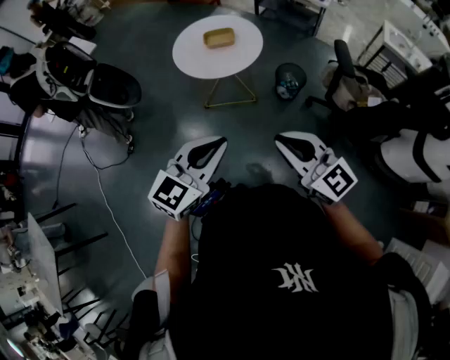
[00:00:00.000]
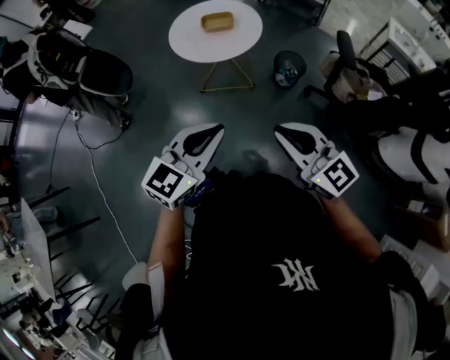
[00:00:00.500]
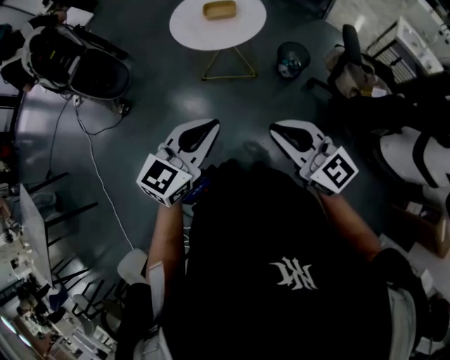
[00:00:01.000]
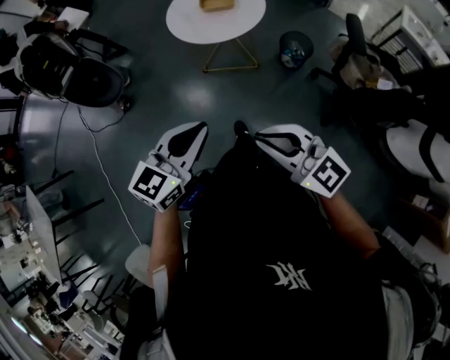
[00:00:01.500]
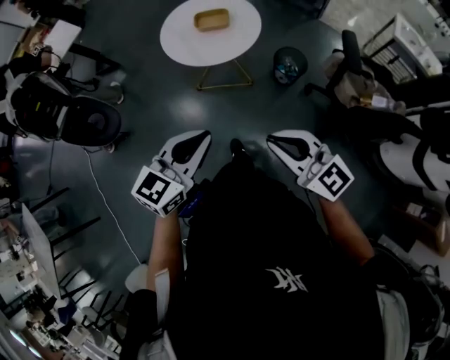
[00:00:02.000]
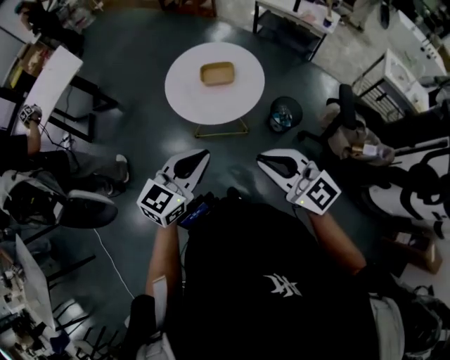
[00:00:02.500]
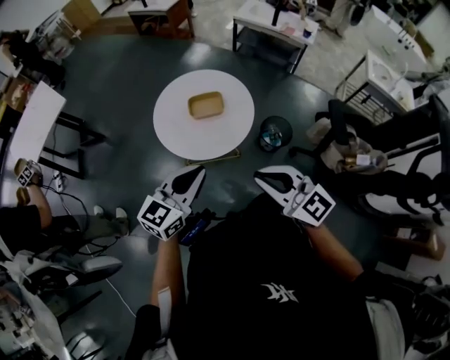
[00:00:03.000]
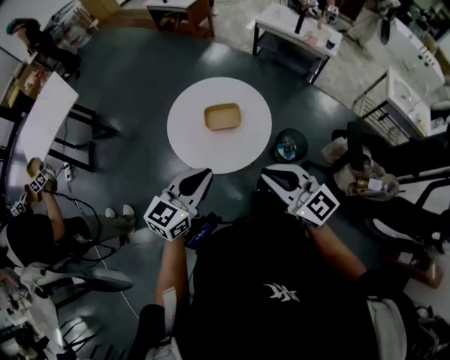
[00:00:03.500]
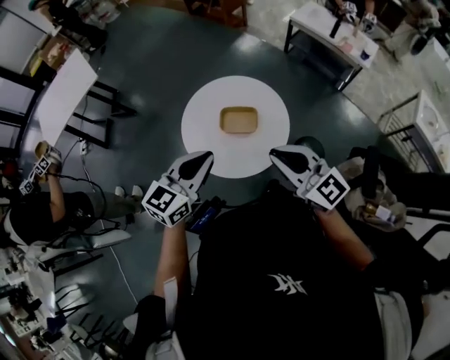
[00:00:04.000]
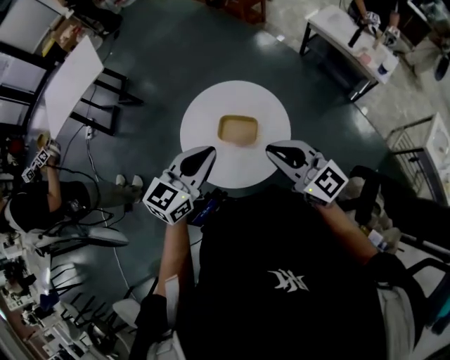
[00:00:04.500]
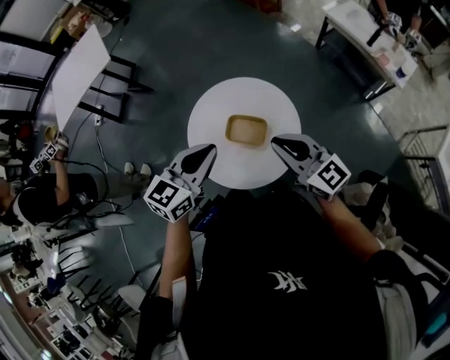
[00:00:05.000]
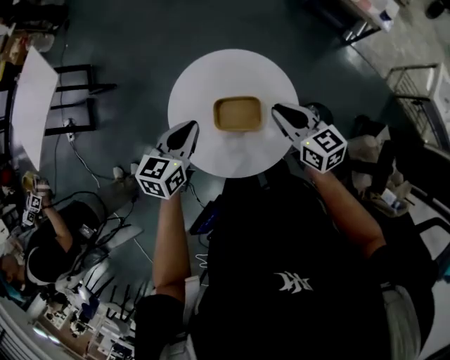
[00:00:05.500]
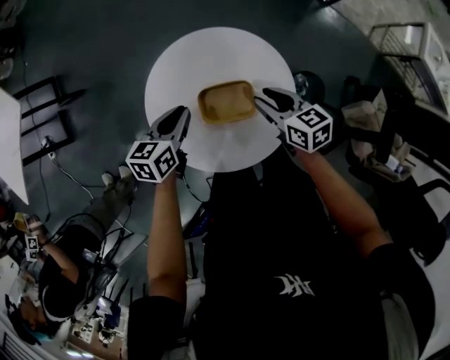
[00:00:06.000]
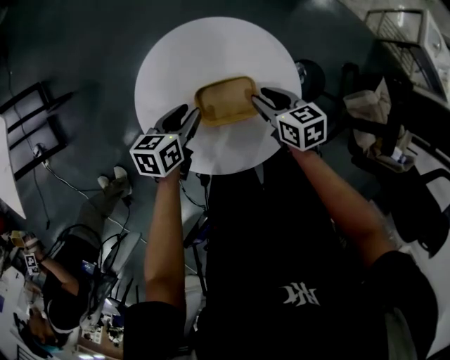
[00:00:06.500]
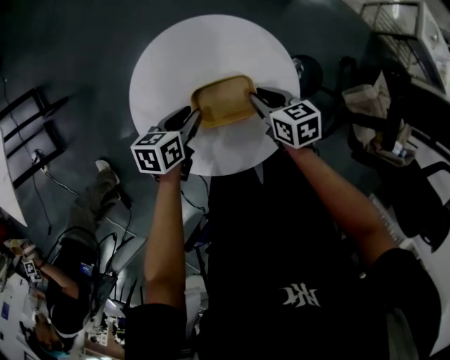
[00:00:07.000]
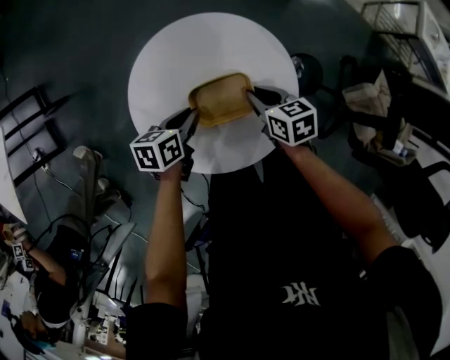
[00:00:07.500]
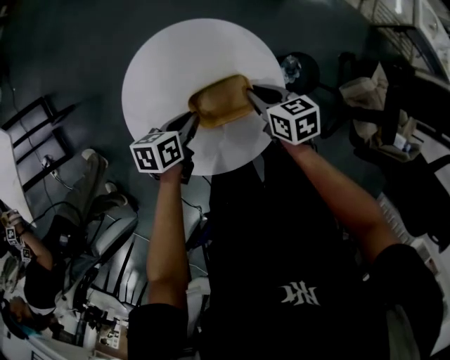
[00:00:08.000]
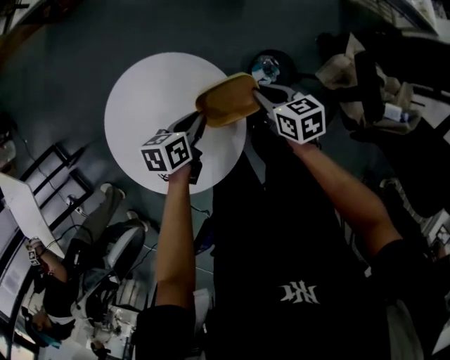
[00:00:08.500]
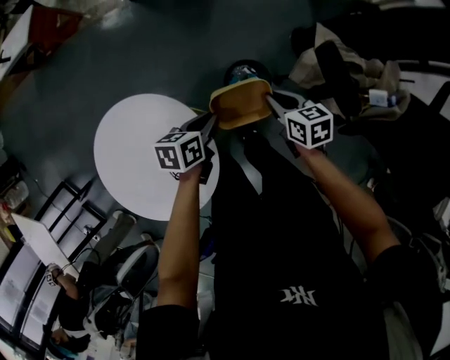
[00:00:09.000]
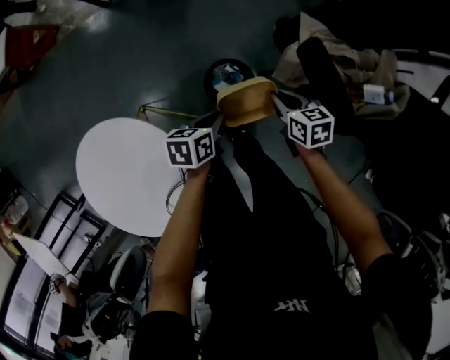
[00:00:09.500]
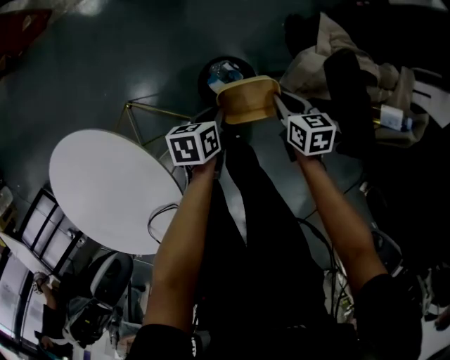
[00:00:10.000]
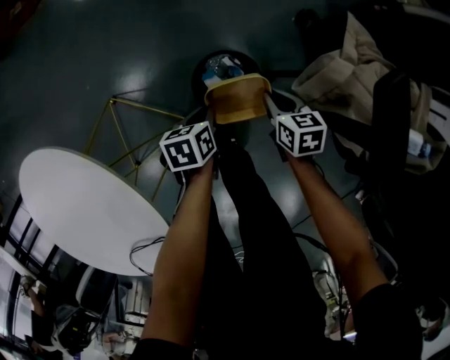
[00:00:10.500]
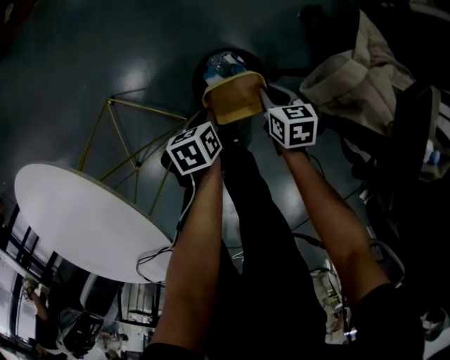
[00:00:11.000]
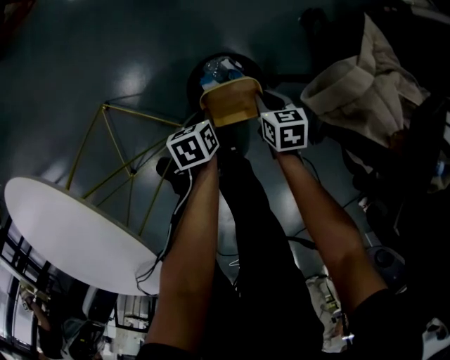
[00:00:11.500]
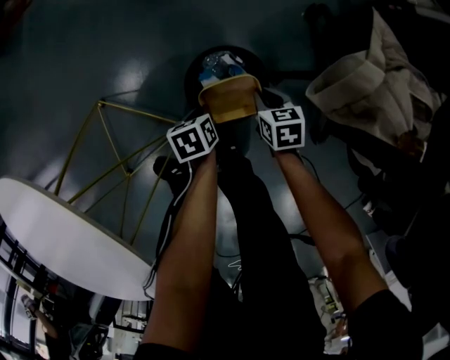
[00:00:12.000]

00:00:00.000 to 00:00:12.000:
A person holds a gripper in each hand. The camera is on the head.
00:00:00.000 to 00:00:02.000: Both grippers move forward, about 10 cm.
00:00:02.000 to 00:00:04.000: The two grippers travel together, forward, about 40 cm.
00:00:04.000 to 00:00:06.000: The grippers both shift downward and forward by roughly 35 cm. The right gripper tilts its fingers approximately 30 degrees downward, and opens up; the left gripper swivels approximately 40 degrees.
00:00:06.000 to 00:00:08.000: The right gripper shifts about 5 cm downward. The left gripper is displaced downward and to the right by about 10 cm, turns by about 20 degrees, and opens and closes again.
00:00:08.000 to 00:00:10.000: The pair of grippers is taken about 50 cm. The left gripper rotates approximately 20 degrees. Meanwhile the right gripper turns by about 30 degrees.
00:00:10.000 to 00:00:12.000: Both grippers travel together downward, about 25 cm. The left gripper rotates approximately 20 degrees.

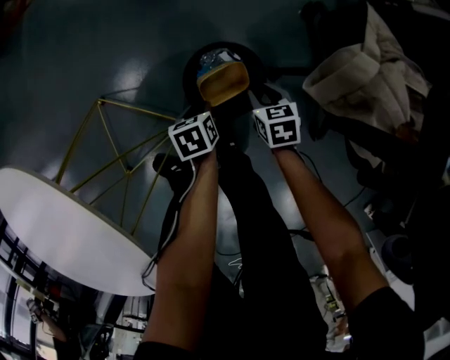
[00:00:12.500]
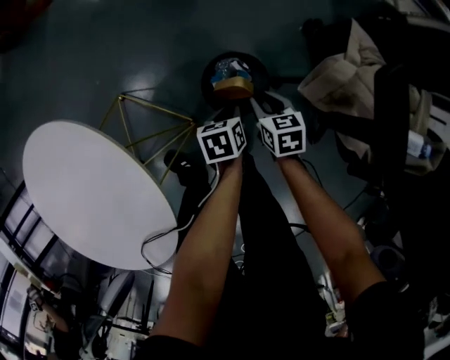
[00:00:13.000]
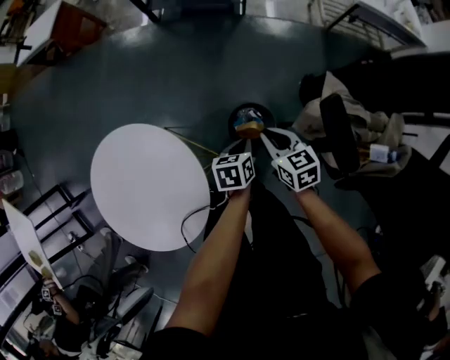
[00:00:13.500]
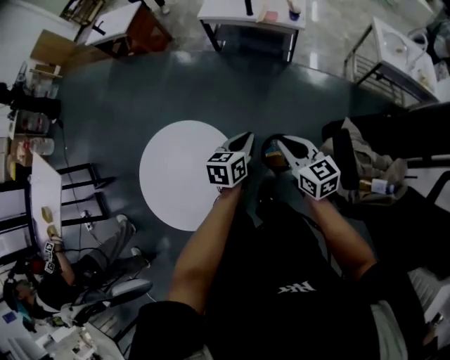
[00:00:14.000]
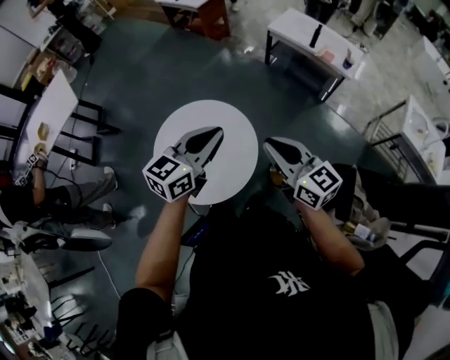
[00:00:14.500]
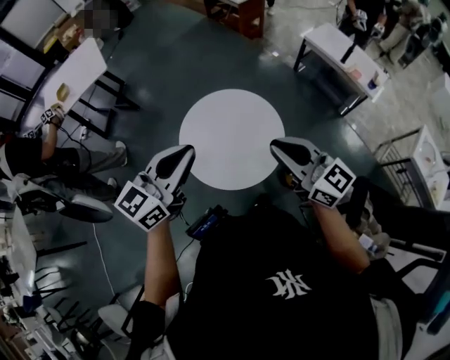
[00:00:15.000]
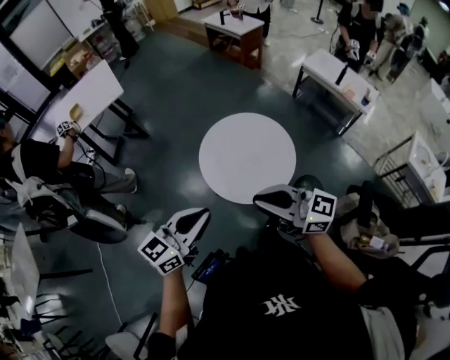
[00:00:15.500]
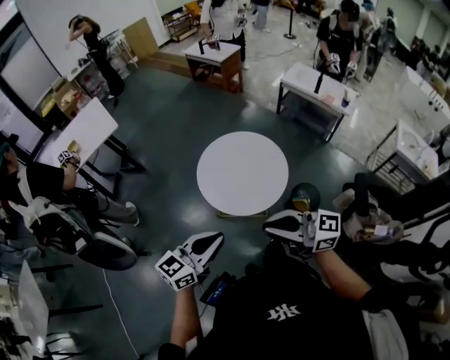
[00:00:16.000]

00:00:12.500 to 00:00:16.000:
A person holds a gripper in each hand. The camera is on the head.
00:00:12.500 to 00:00:14.500: The grippers both shift upward by some 80 cm. The right gripper tips its fingers upward by approximately 50 degrees; the left gripper tilts its fingers approximately 60 degrees upward, and closes up.
00:00:14.500 to 00:00:16.000: Both grippers move to the left and backward, roughly 40 cm. The right gripper swivels roughly 40 degrees.

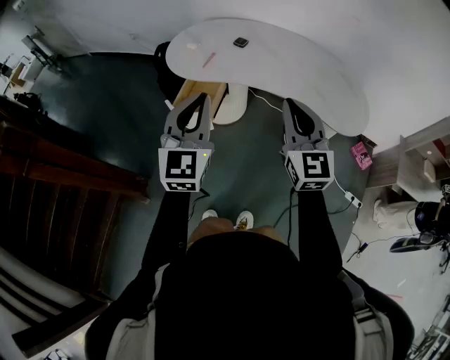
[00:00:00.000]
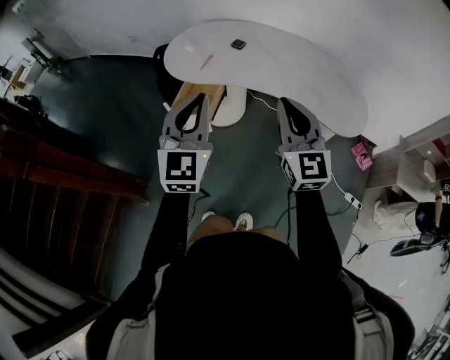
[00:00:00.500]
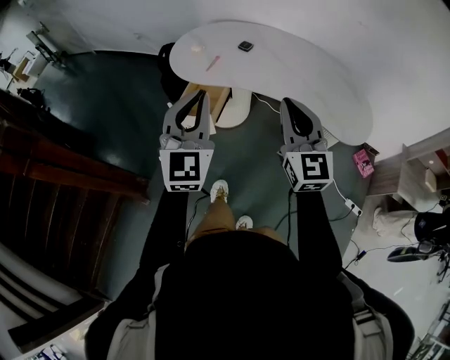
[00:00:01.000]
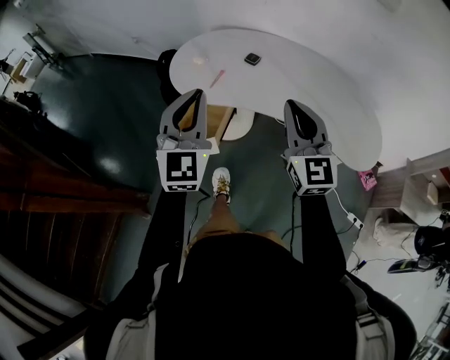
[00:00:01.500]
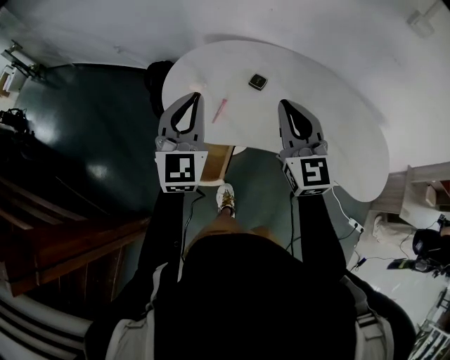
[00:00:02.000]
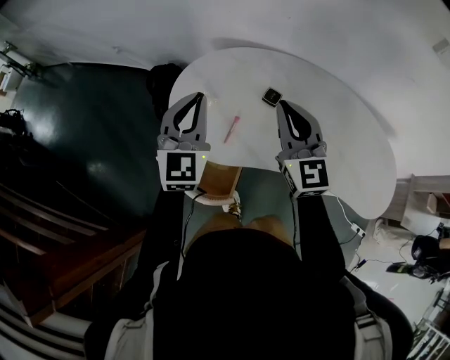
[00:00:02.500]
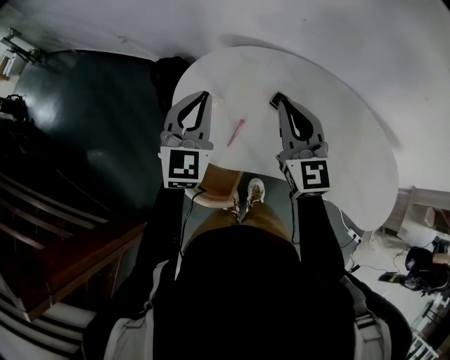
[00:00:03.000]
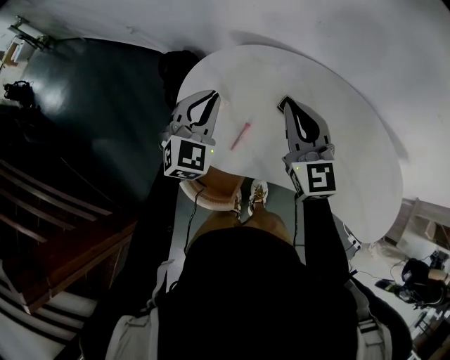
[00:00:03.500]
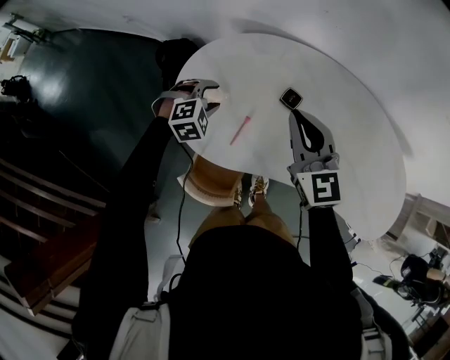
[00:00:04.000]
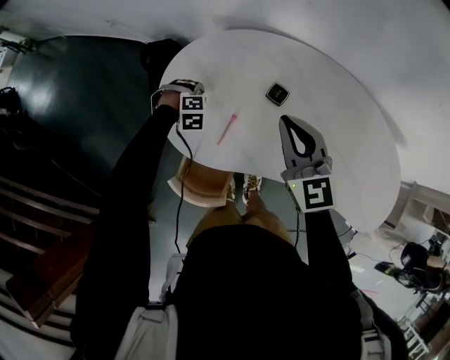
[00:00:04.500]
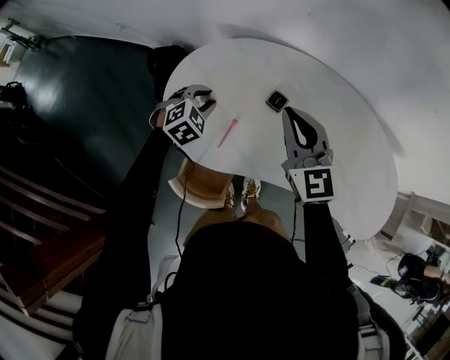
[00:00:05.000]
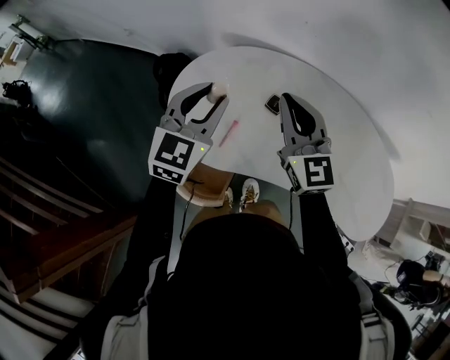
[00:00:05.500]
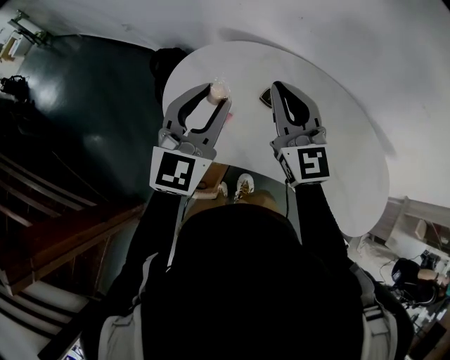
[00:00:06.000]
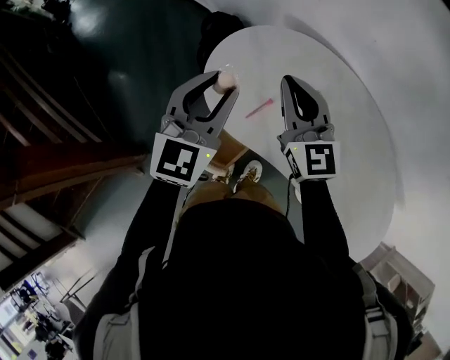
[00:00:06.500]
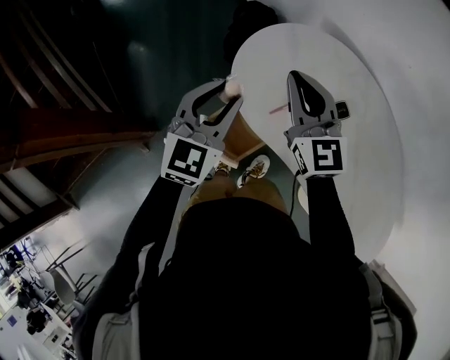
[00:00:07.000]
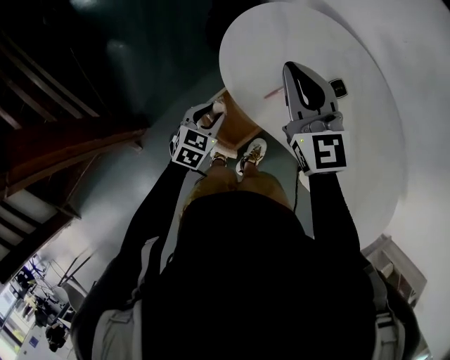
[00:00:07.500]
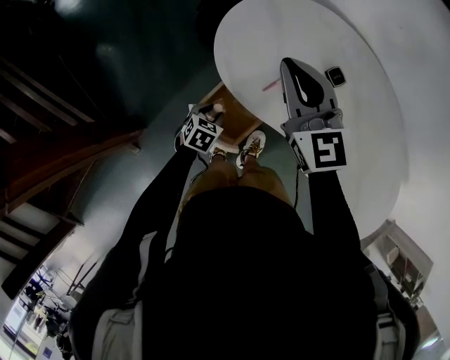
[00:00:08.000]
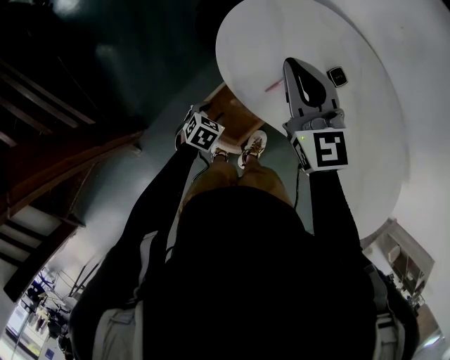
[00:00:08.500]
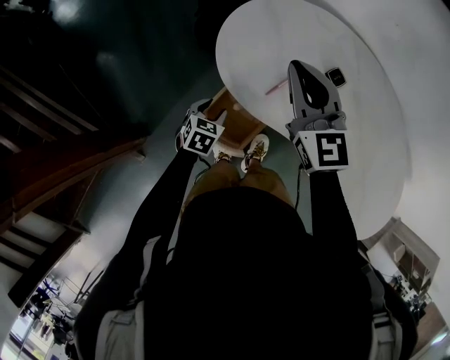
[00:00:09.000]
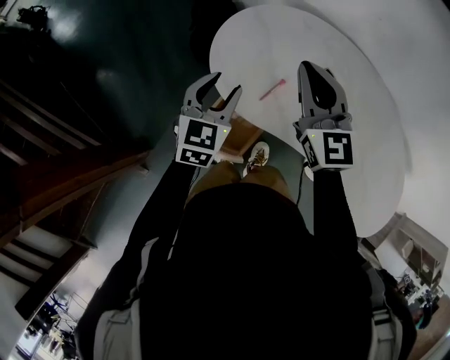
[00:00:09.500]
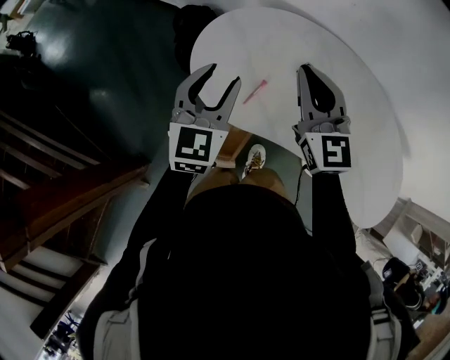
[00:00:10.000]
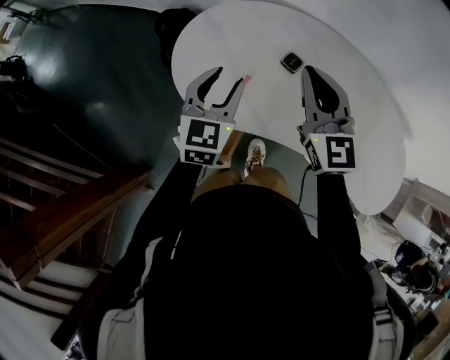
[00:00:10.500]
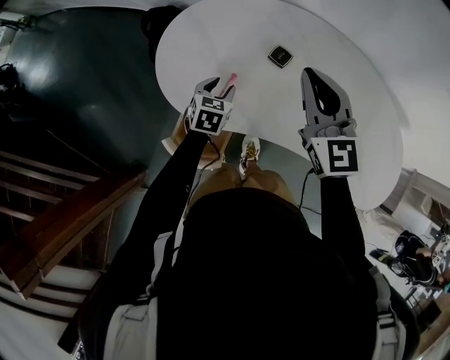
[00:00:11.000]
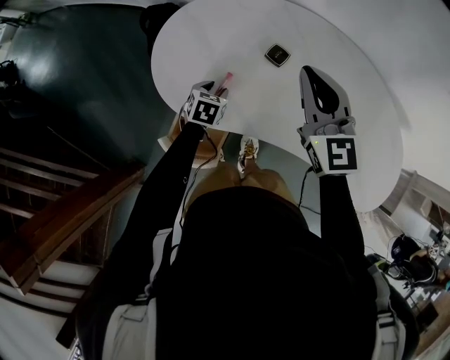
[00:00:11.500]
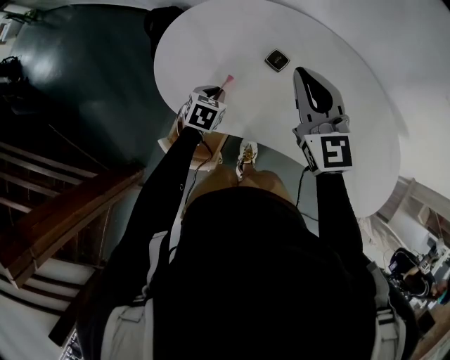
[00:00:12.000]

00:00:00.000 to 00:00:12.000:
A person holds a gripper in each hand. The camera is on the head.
00:00:00.000 to 00:00:02.000: Both grippers move forward, some 30 cm.
00:00:02.000 to 00:00:04.000: The left gripper goes roughly 30 cm downward and forward, tips its fingers downward by roughly 60 degrees, and opens up. Meanwhile the right gripper goes roughly 15 cm forward and downward.
00:00:04.000 to 00:00:06.000: The right gripper shifts about 10 cm upward. The left gripper travels upward by approximately 30 cm, and tilts its fingers roughly 50 degrees upward.
00:00:06.000 to 00:00:08.000: The right gripper shifts by approximately 20 cm, and turns by about 20 degrees; the left gripper is displaced downward by some 40 cm, and angles its fingers downward, by roughly 60 degrees.
00:00:08.000 to 00:00:10.000: The left gripper goes some 35 cm upward, and points its fingers about 50 degrees further upward; the right gripper is displaced to the right by about 10 cm.
00:00:10.000 to 00:00:12.000: The left gripper travels downward by approximately 25 cm, points its fingers roughly 40 degrees further downward, and closes its fingers. Meanwhile the right gripper goes approximately 10 cm to the right.
